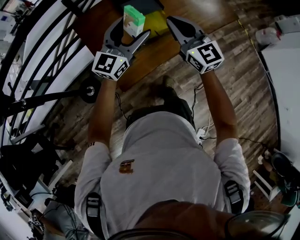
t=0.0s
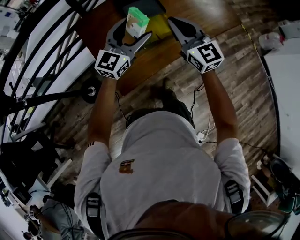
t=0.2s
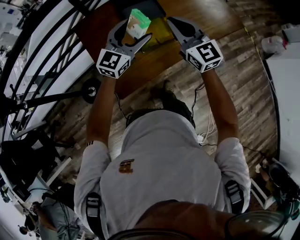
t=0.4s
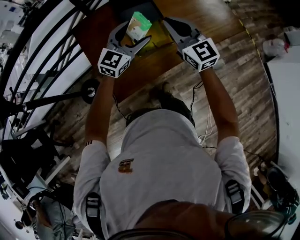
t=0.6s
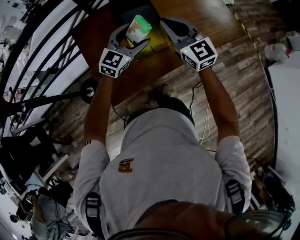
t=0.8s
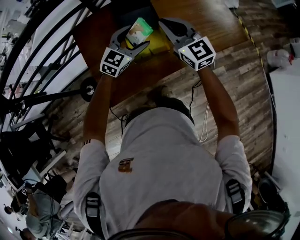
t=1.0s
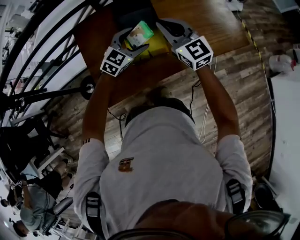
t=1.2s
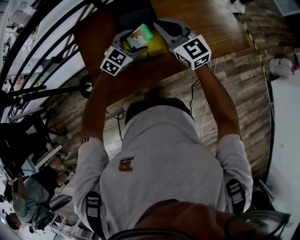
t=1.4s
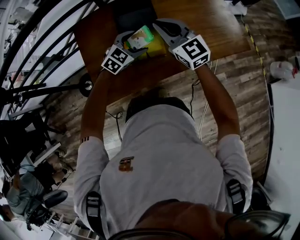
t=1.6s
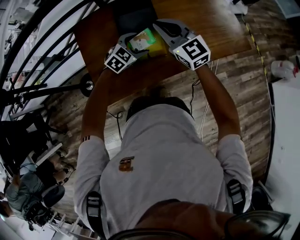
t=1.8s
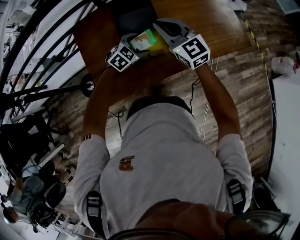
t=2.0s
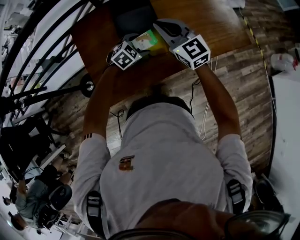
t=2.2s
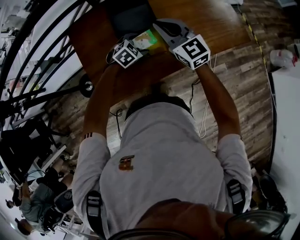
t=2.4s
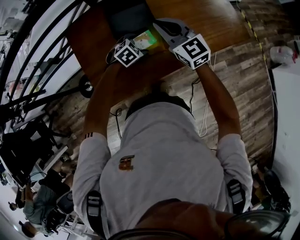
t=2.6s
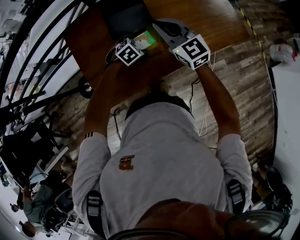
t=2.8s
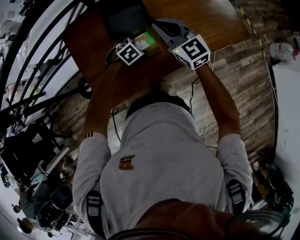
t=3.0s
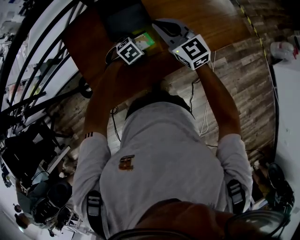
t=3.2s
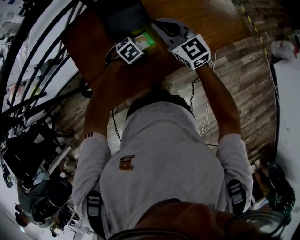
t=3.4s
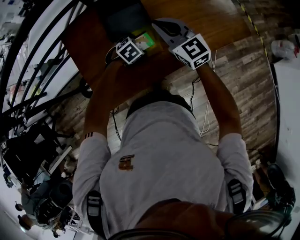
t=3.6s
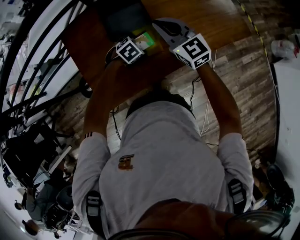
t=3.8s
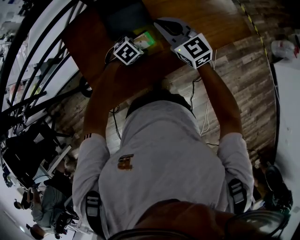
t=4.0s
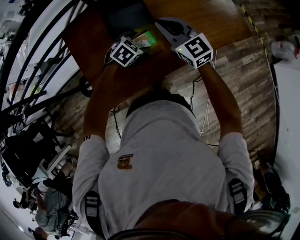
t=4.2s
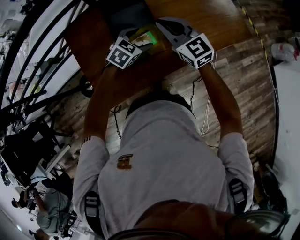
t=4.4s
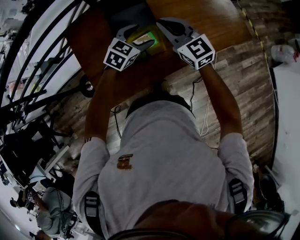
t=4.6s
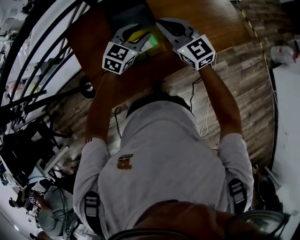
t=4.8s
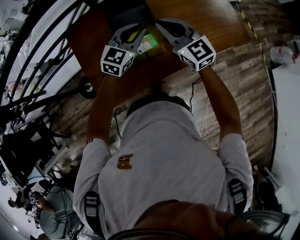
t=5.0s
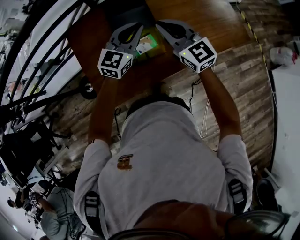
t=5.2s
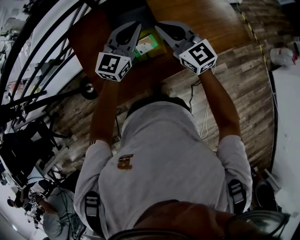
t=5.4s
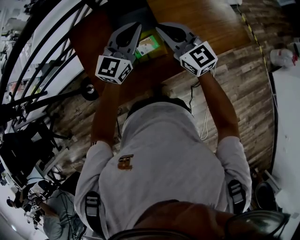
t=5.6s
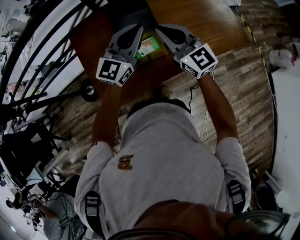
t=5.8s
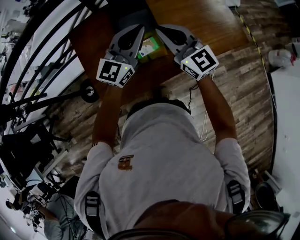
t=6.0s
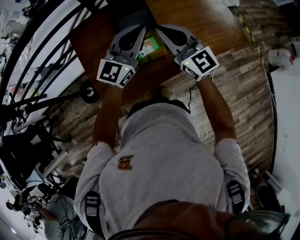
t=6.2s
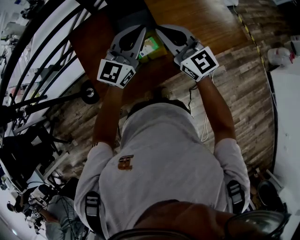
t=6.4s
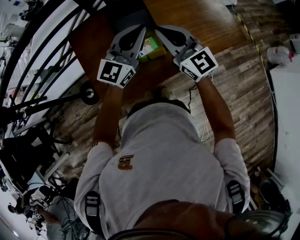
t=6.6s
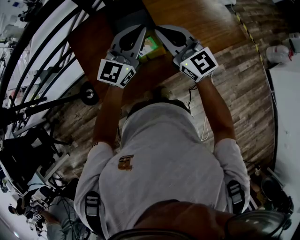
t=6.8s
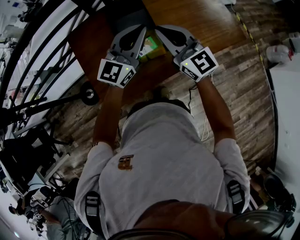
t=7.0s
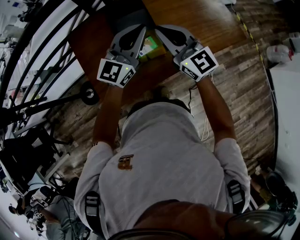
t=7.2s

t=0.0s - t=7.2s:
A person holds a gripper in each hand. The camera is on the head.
t=0.0s - t=1.4s: The right gripper travels forward and to the right by some 20 cm; the left gripper travels downward, forward and to the right by roughly 25 cm, and angles its fingers downward, by some 40 degrees.
t=1.4s - t=2.8s: The left gripper heads downward, covering some 15 cm, and angles its fingers downward, by roughly 30 degrees; the right gripper ends up roughly 5 cm from where it was.
t=2.8s - t=4.4s: The left gripper travels upward by some 10 cm.
t=4.4s - t=5.8s: The right gripper goes about 5 cm upward; the left gripper goes roughly 20 cm upward, tilts its fingers some 50 degrees upward, and closes.
t=5.8s - t=7.2s: The grippers move only a little.

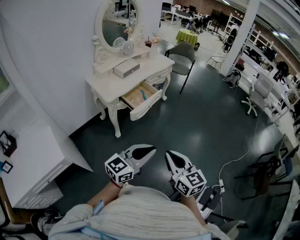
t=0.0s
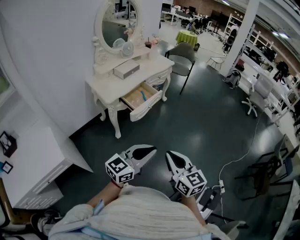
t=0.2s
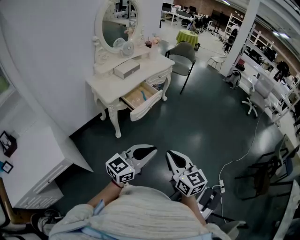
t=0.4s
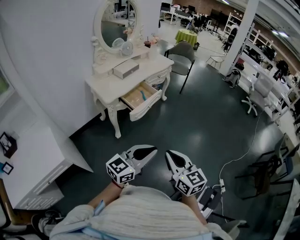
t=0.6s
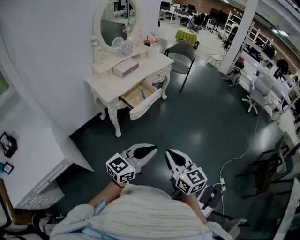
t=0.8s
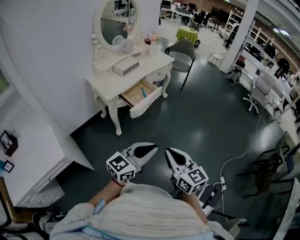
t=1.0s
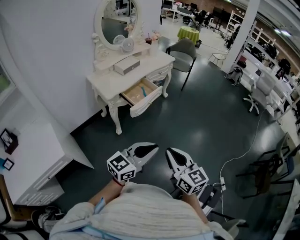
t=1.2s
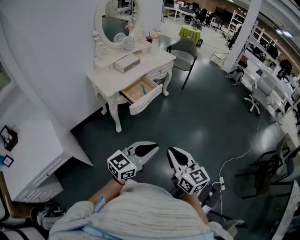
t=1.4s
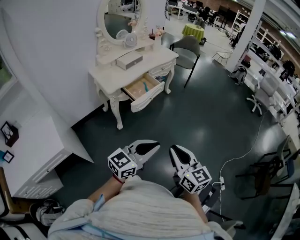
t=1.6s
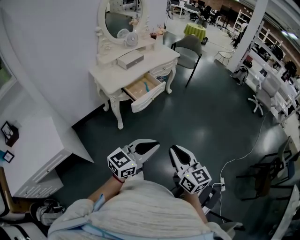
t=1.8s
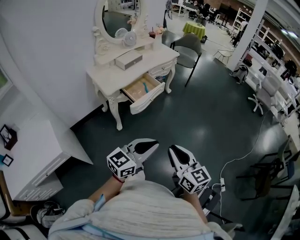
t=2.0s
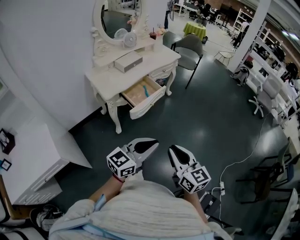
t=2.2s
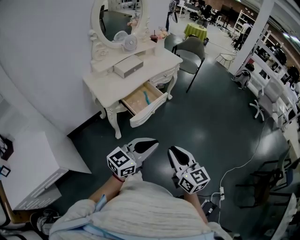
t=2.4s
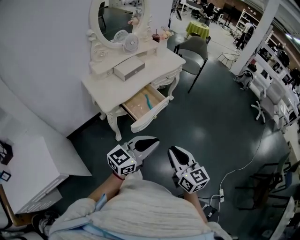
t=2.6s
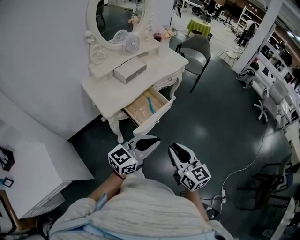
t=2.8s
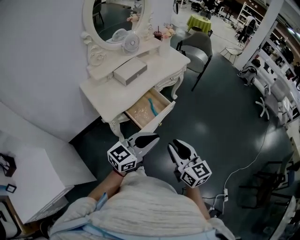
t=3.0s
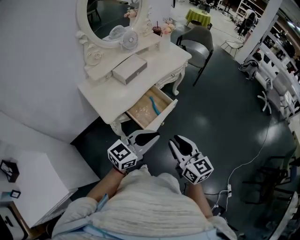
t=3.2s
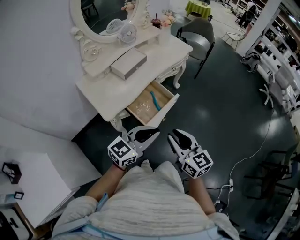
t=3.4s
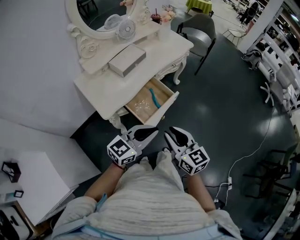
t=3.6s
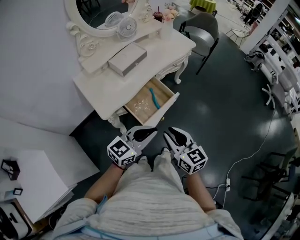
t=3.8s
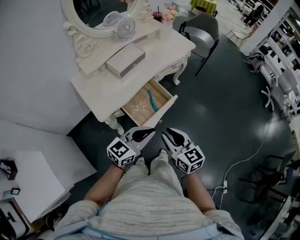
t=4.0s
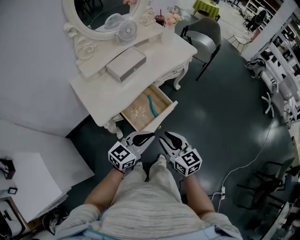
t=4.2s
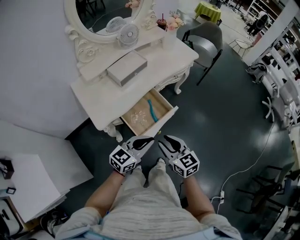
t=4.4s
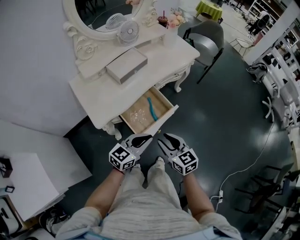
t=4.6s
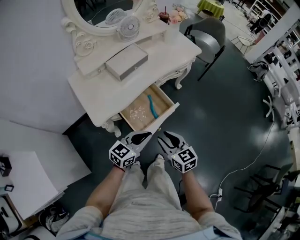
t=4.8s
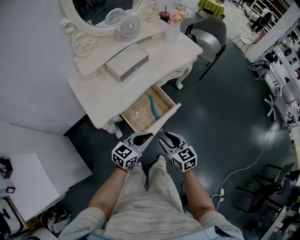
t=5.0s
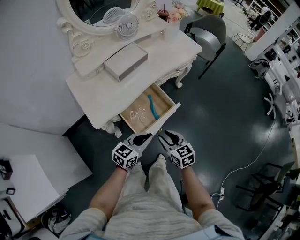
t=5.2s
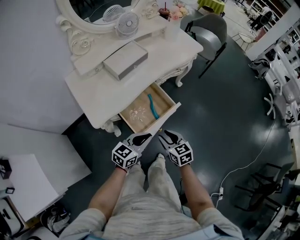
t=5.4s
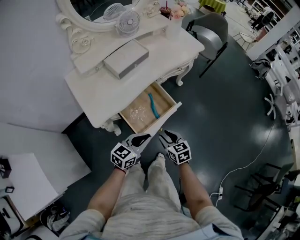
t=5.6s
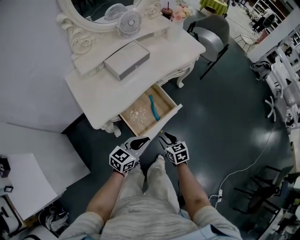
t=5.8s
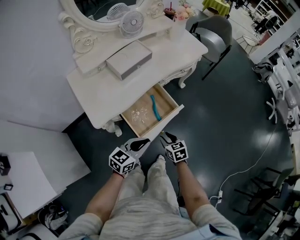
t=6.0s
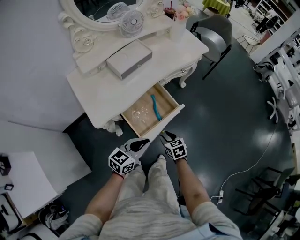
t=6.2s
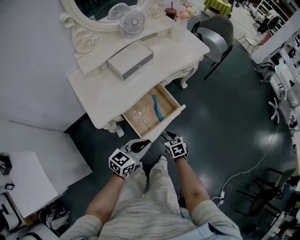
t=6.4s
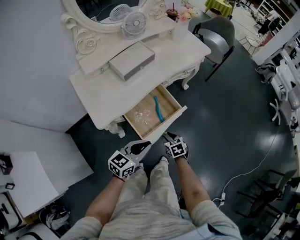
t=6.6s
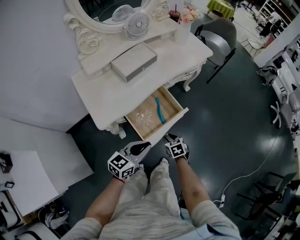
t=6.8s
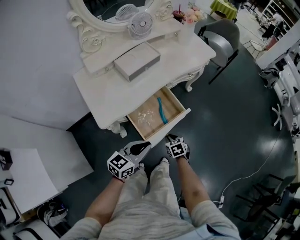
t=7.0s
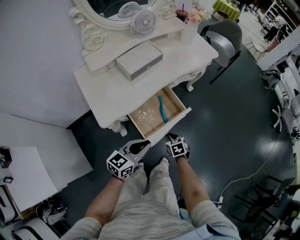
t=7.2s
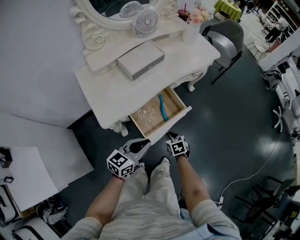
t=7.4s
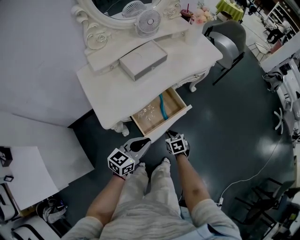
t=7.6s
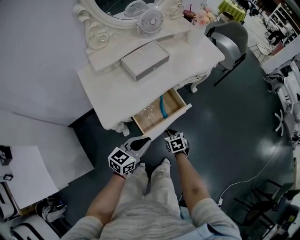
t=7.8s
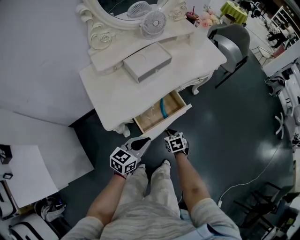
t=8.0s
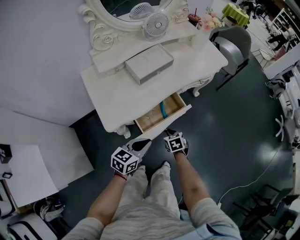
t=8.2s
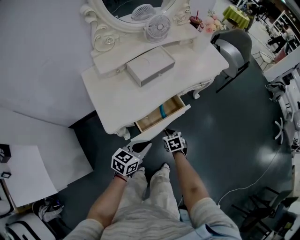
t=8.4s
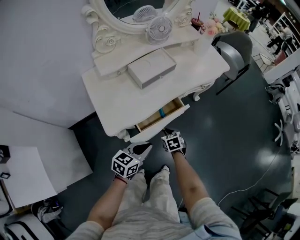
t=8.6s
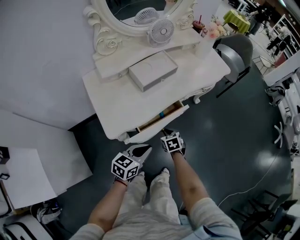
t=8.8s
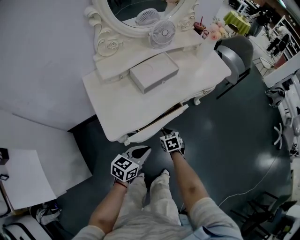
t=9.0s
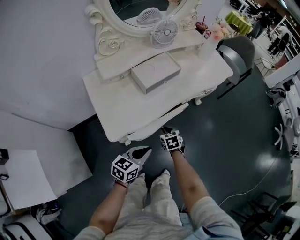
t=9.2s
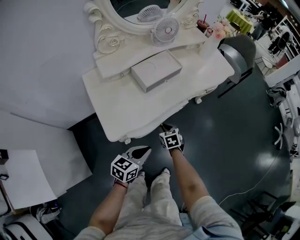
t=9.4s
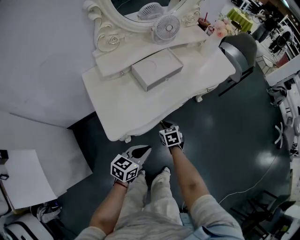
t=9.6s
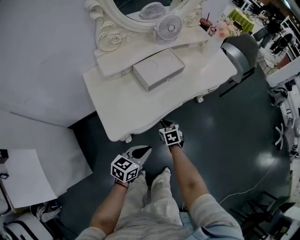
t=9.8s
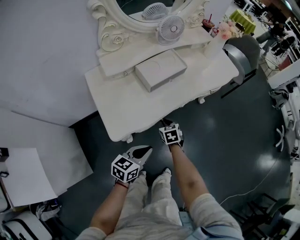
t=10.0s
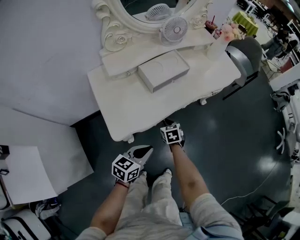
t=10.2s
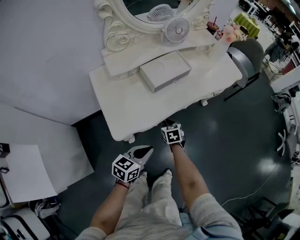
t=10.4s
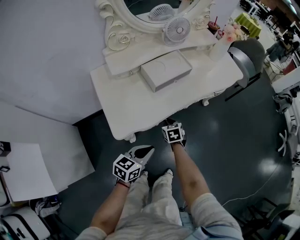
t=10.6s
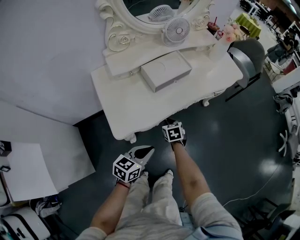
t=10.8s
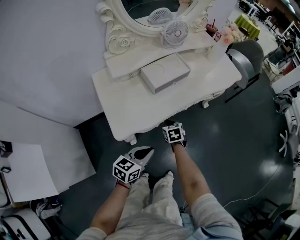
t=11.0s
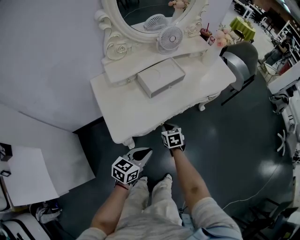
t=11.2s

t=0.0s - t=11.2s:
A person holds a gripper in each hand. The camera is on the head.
t=0.0s - t=1.6s: The grippers make only small movements.
t=1.6s - t=3.2s: Both grippers move forward and to the left, some 40 cm.
t=3.2s - t=4.8s: Both grippers move downward and forward, some 20 cm. The right gripper swivels roughly 20 degrees.
t=4.8s - t=6.4s: The left gripper changes place by approximately 5 cm; the right gripper moves downward, approximately 20 cm, and rotates approximately 30 degrees.
t=6.4s - t=8.0s: The left gripper shifts some 5 cm to the left; the right gripper is displaced forward and to the left by about 10 cm.
t=8.0s - t=9.6s: The left gripper changes place by approximately 5 cm; the right gripper moves forward and to the left, roughly 15 cm.
t=9.6s - t=11.2s: The grippers move only a little.

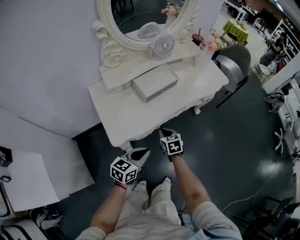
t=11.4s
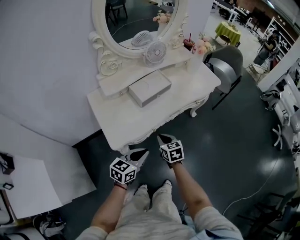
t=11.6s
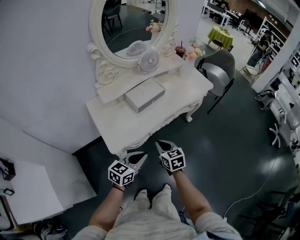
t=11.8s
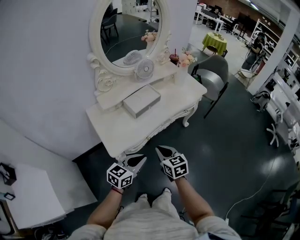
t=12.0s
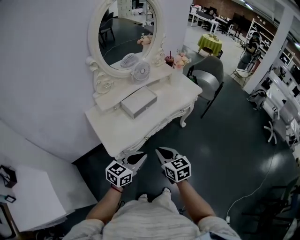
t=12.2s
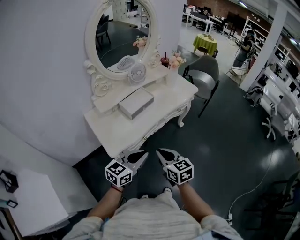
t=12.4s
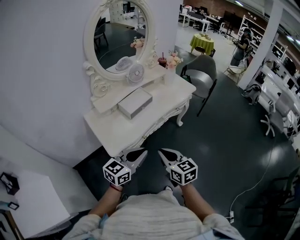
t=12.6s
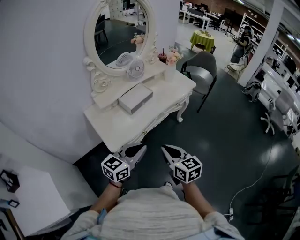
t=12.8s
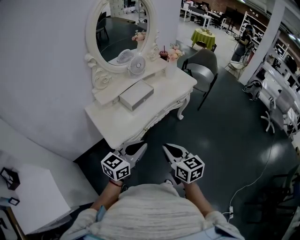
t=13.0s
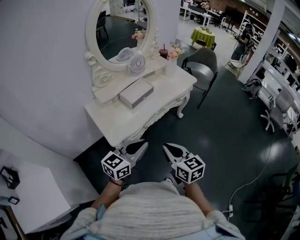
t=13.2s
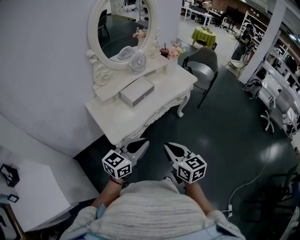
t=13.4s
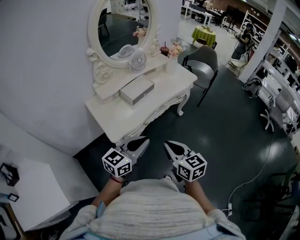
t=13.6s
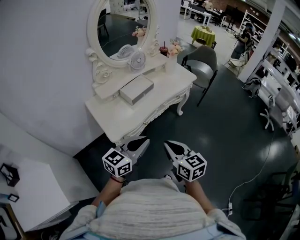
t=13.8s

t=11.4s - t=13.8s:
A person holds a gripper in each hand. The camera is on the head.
t=11.4s - t=12.6s: The right gripper goes about 35 cm upward and backward, and changes its angle by approximately 30 degrees. Meanwhile the left gripper travels upward by roughly 20 cm, and turns by about 20 degrees.
t=12.6s - t=13.8s: The right gripper moves backward, approximately 5 cm.

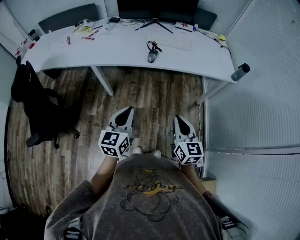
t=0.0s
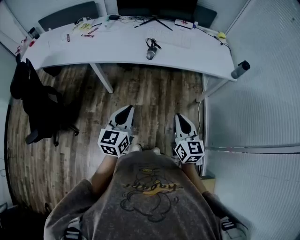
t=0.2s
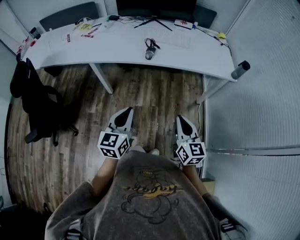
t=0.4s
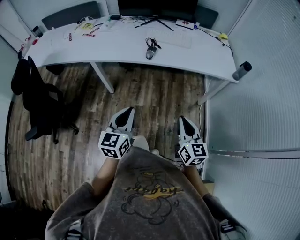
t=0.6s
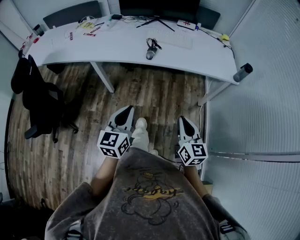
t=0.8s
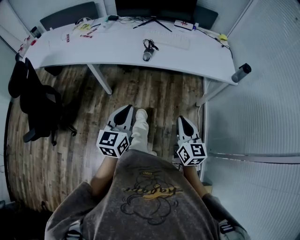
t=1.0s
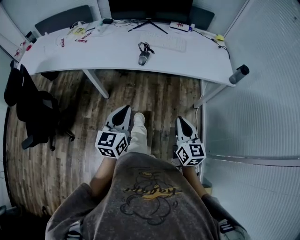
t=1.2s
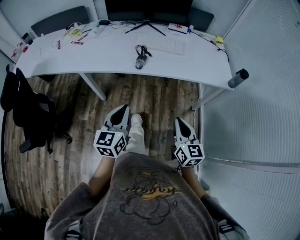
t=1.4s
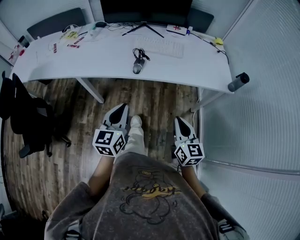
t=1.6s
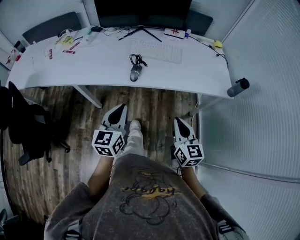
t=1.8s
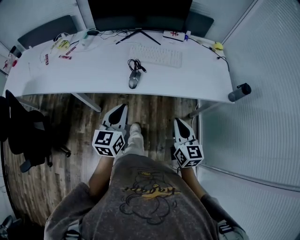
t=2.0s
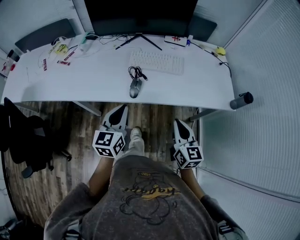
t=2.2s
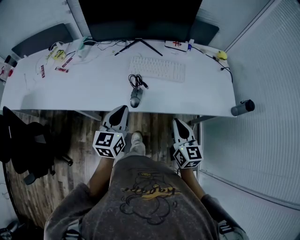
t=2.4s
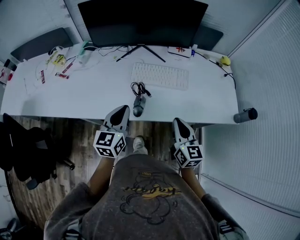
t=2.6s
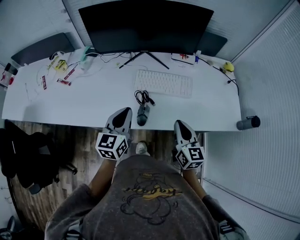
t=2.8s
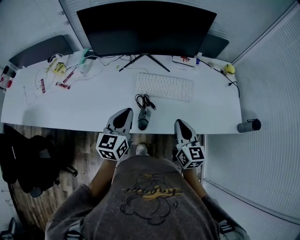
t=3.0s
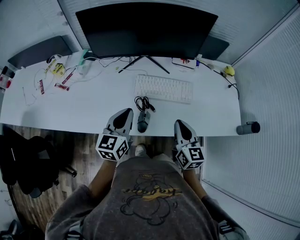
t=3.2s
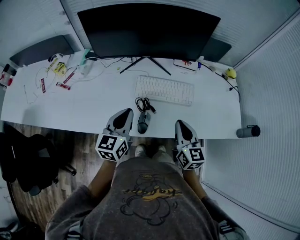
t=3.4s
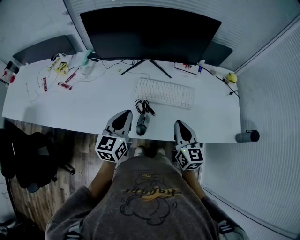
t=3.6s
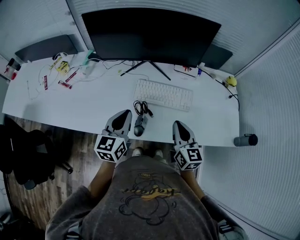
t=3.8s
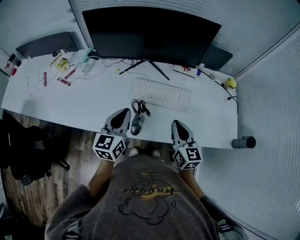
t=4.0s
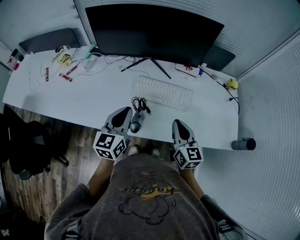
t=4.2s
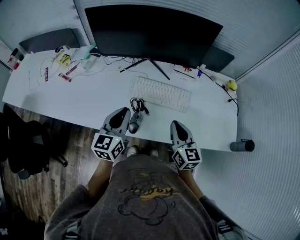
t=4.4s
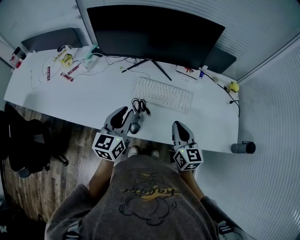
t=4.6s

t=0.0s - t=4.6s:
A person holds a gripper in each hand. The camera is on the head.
t=0.0s - t=1.6s: Both grippers move forward and to the right, approximately 15 cm.
t=1.6s - t=3.0s: The grippers both shift forward by approximately 35 cm.
t=3.0s - t=4.6s: The right gripper moves roughly 5 cm.
